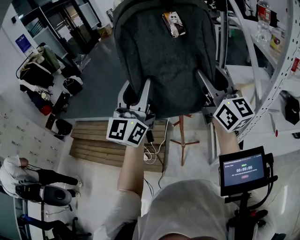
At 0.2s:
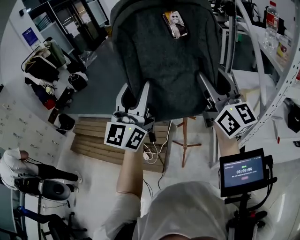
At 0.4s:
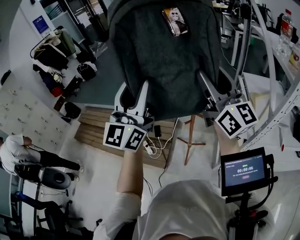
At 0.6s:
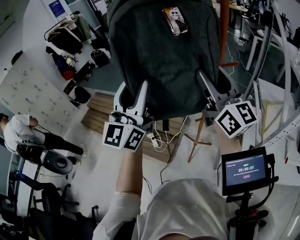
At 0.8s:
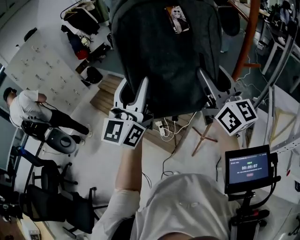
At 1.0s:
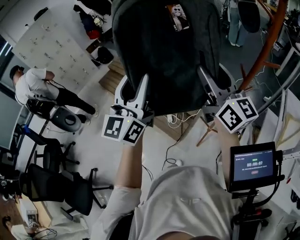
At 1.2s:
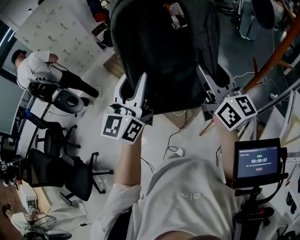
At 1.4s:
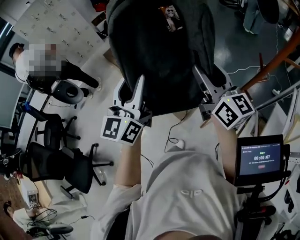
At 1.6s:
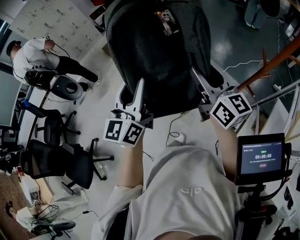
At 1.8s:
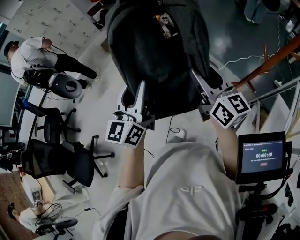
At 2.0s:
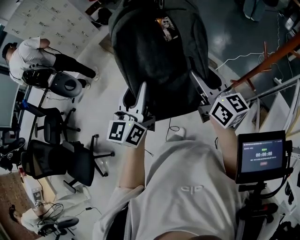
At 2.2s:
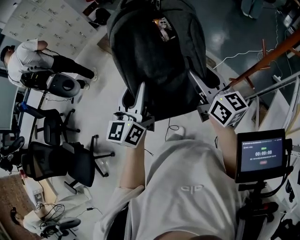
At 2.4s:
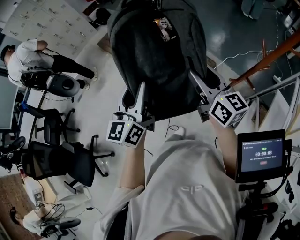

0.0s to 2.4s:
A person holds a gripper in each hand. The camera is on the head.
0.0s to 1.2s: The right gripper shifts by some 30 cm, and swivels about 40 degrees, while the left gripper ends up about 30 cm from where it was, and swivels approximately 40 degrees.
1.2s to 2.4s: The two grippers go some 15 cm downward.

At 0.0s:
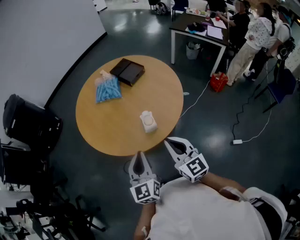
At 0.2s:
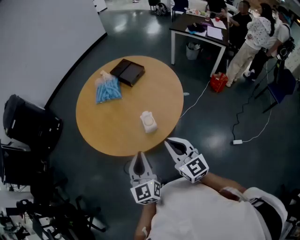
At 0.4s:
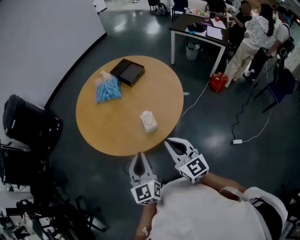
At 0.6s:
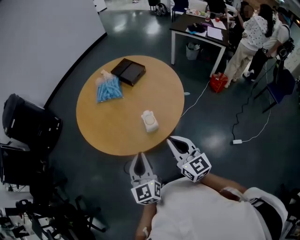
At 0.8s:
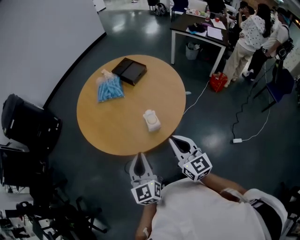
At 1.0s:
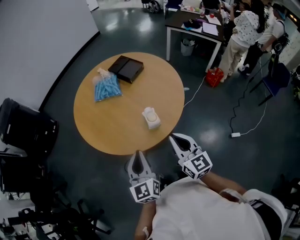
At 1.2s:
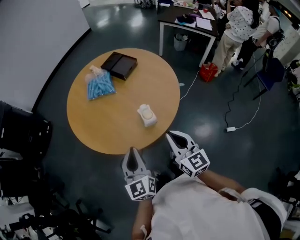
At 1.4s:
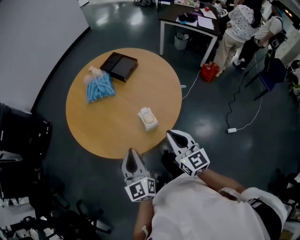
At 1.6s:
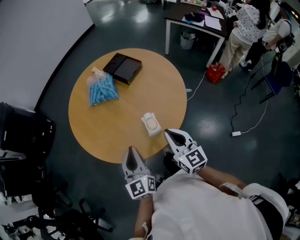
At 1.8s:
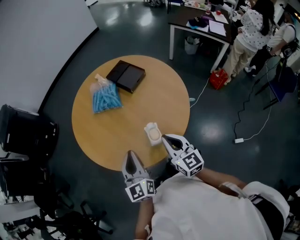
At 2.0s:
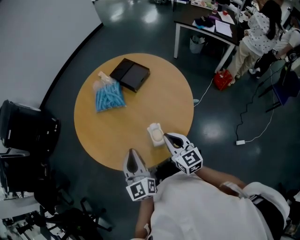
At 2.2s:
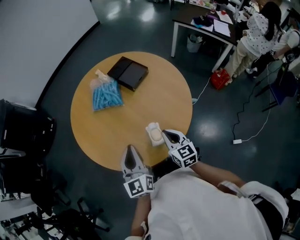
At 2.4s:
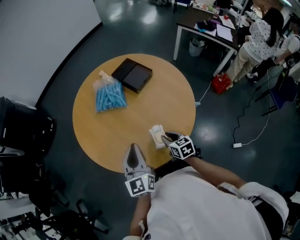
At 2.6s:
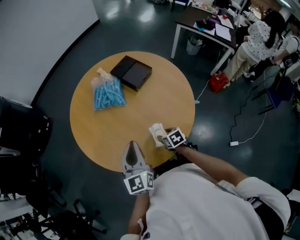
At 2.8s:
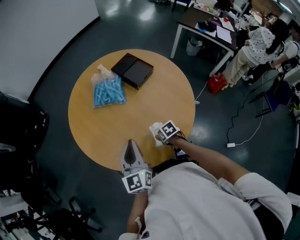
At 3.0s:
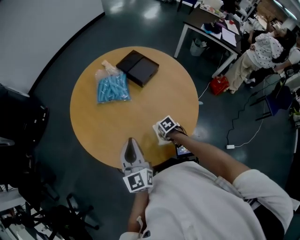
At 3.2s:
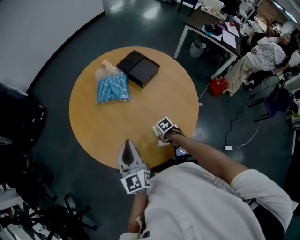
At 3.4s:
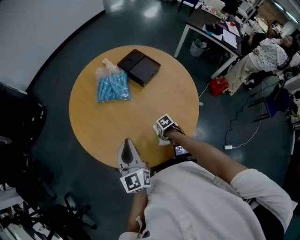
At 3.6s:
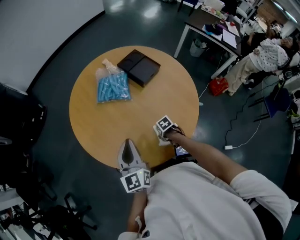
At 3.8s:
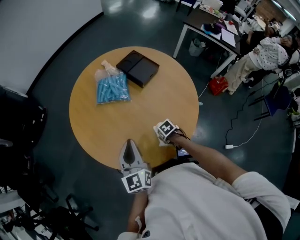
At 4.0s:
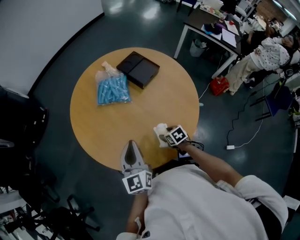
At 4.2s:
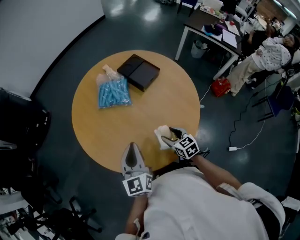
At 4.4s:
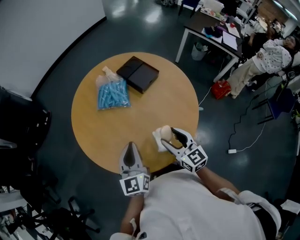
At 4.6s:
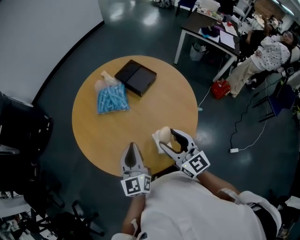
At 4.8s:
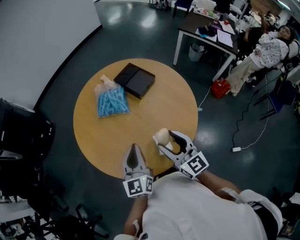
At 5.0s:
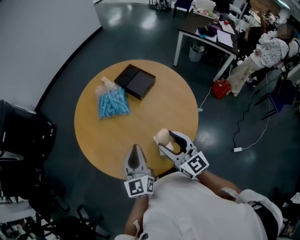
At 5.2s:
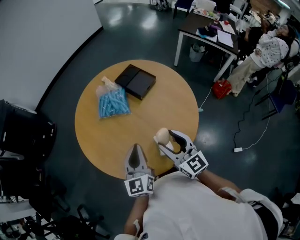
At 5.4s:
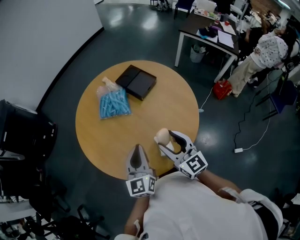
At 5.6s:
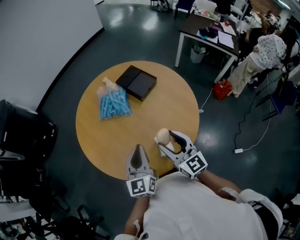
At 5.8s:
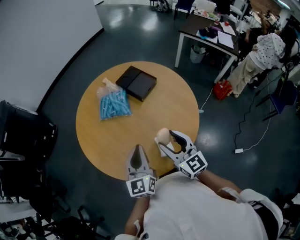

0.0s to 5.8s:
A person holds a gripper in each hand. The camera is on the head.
0.0s to 1.4s: The right gripper is displaced forward by some 5 cm. Meanwhile the left gripper goes approximately 10 cm forward and to the left.
1.4s to 2.8s: The left gripper is displaced forward by some 15 cm, while the right gripper shifts some 35 cm downward and forward, tilts its fingers some 60 degrees downward, and opens its fingers.
2.8s to 4.4s: The right gripper is displaced upward by some 25 cm, and angles its fingers upward, by roughly 50 degrees.
4.4s to 5.8s: The right gripper moves upward, about 5 cm.

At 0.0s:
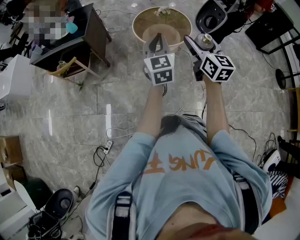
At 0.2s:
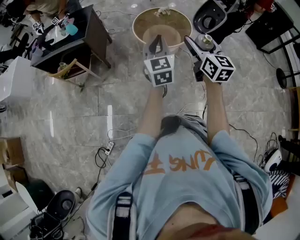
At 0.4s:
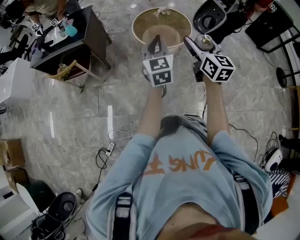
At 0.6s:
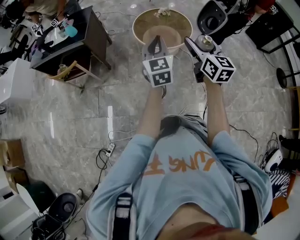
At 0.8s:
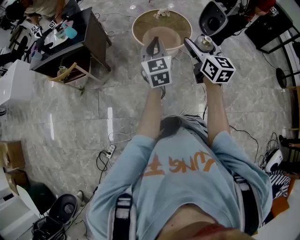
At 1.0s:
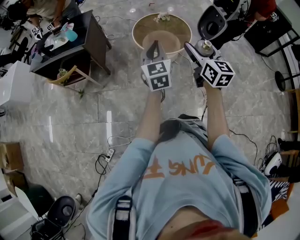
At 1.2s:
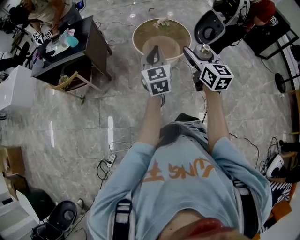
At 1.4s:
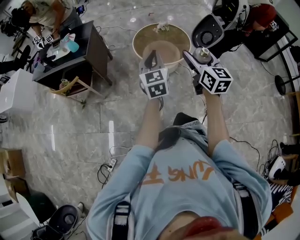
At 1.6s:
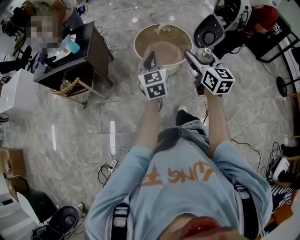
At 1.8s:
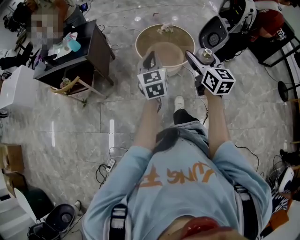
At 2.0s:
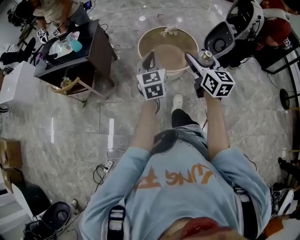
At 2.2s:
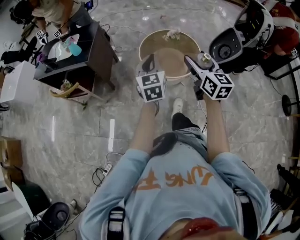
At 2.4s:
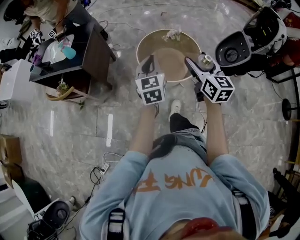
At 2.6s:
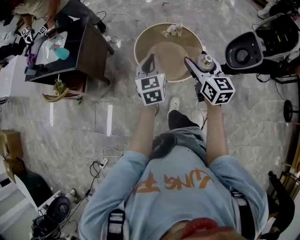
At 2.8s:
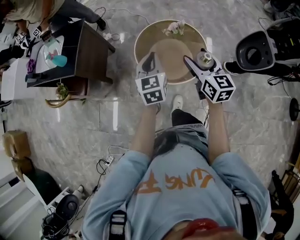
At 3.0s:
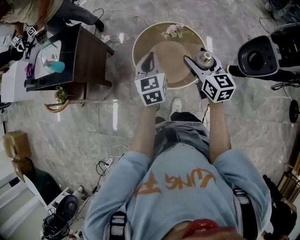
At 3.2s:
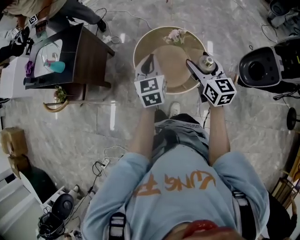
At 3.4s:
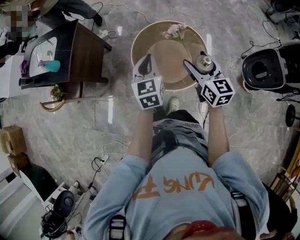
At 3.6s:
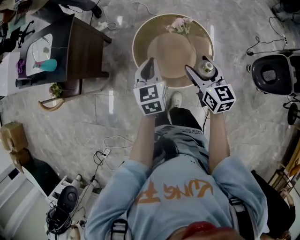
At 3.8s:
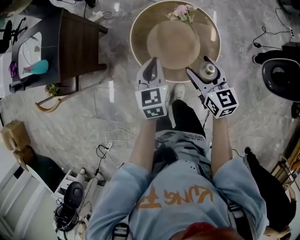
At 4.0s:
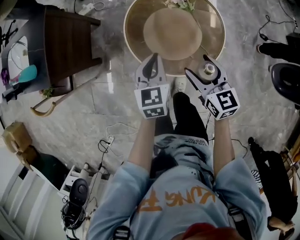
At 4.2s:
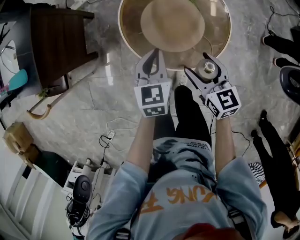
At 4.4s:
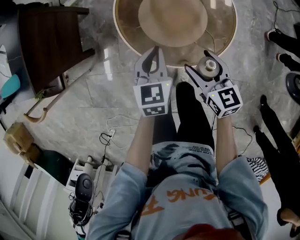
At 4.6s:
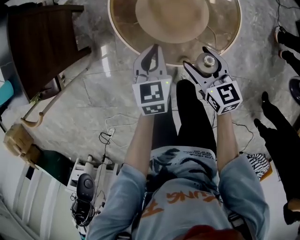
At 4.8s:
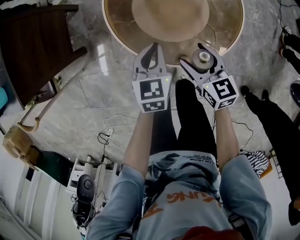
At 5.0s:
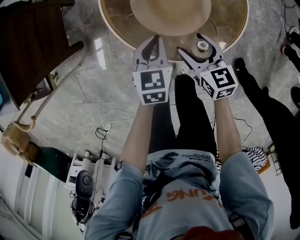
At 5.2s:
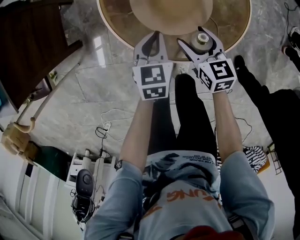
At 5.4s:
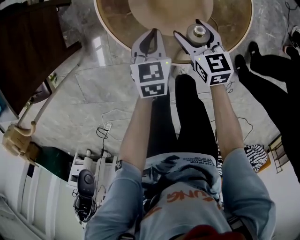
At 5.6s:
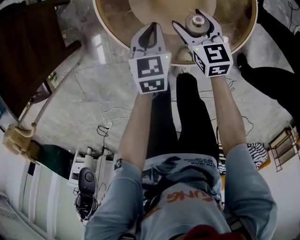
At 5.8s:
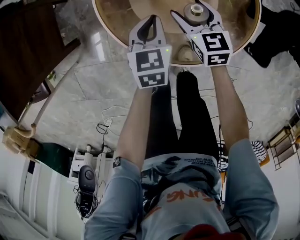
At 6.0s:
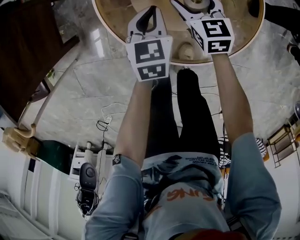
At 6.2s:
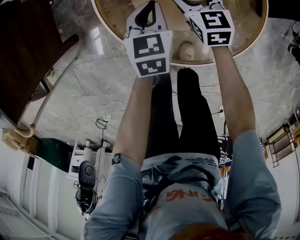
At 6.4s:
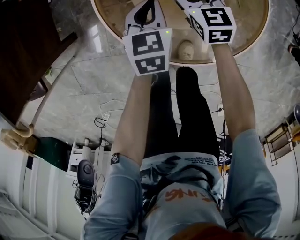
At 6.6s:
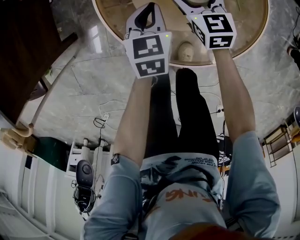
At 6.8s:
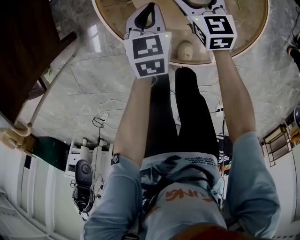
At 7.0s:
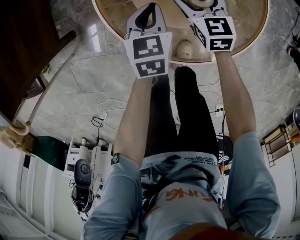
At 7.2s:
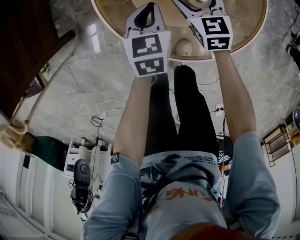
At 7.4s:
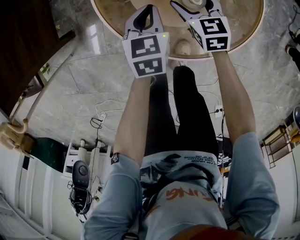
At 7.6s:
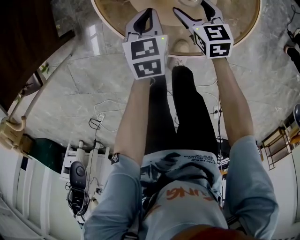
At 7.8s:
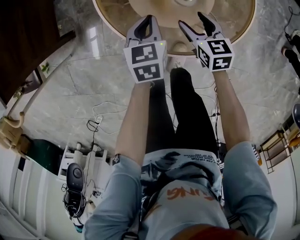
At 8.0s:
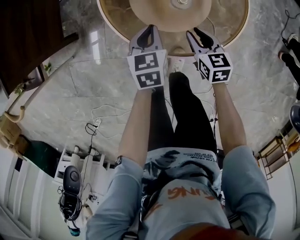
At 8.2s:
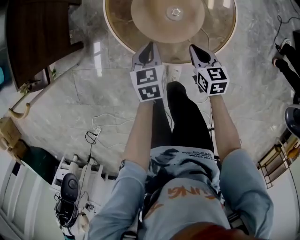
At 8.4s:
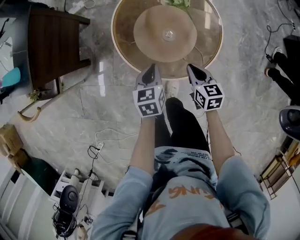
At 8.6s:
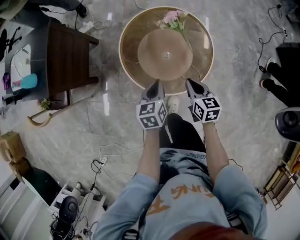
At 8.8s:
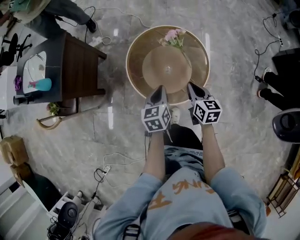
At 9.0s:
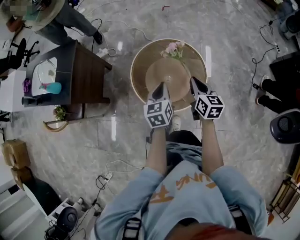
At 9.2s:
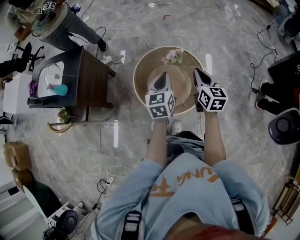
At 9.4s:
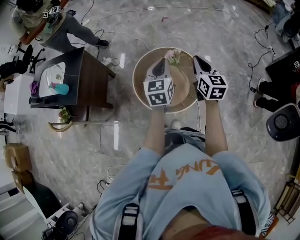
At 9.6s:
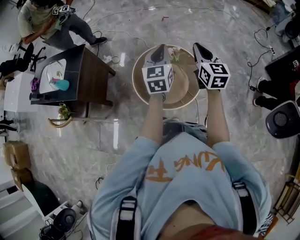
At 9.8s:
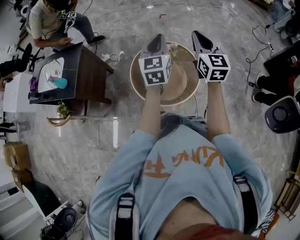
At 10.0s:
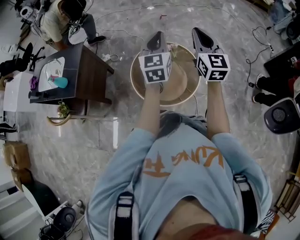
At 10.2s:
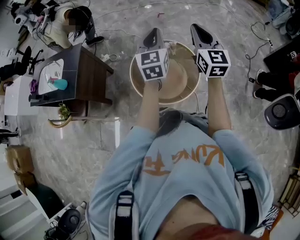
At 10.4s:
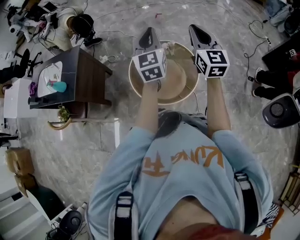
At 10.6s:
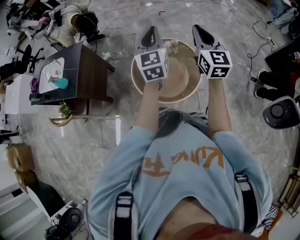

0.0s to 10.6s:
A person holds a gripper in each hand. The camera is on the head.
0.0s to 1.6s: The left gripper goes about 5 cm forward.
1.6s to 3.0s: The two grippers travel together, forward, some 40 cm.
3.0s to 4.6s: The two grippers go some 35 cm downward. The left gripper swivels approximately 20 degrees. Meanwhile the right gripper changes its angle by about 20 degrees.
4.6s to 6.0s: The right gripper heads forward and downward, covering about 25 cm; the left gripper moves downward and forward, roughly 15 cm.
6.0s to 7.6s: The right gripper travels backward by about 5 cm.
7.6s to 9.0s: Both grippers move upward, approximately 40 cm. The right gripper changes its angle by approximately 30 degrees, and closes. The left gripper rotates some 20 degrees.
9.0s to 10.6s: Both grippers travel together upward, roughly 25 cm. The left gripper swivels about 30 degrees. Meanwhile the right gripper turns by roughly 40 degrees.

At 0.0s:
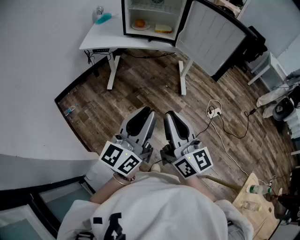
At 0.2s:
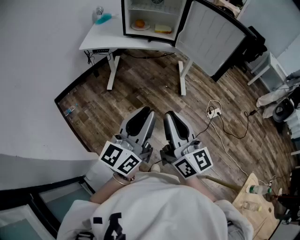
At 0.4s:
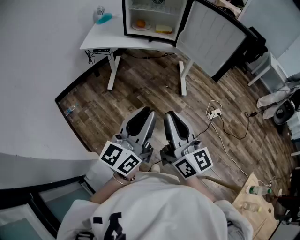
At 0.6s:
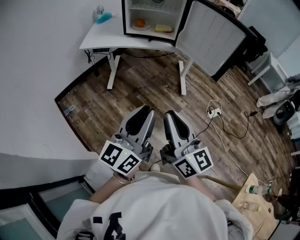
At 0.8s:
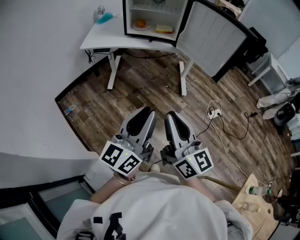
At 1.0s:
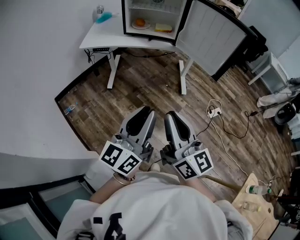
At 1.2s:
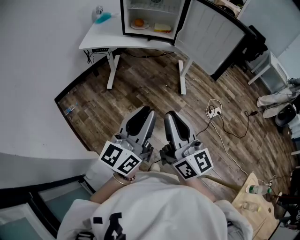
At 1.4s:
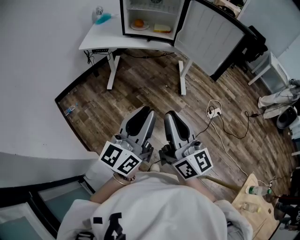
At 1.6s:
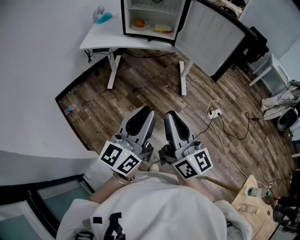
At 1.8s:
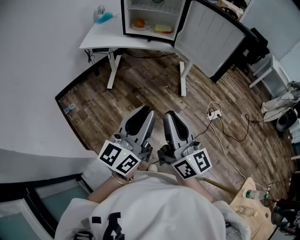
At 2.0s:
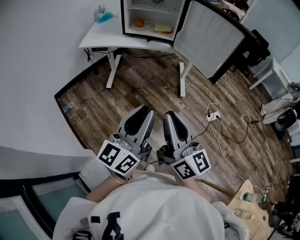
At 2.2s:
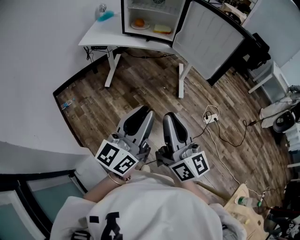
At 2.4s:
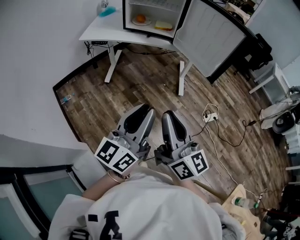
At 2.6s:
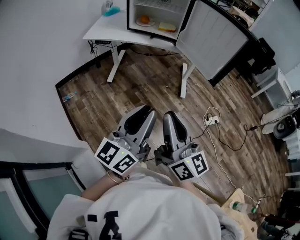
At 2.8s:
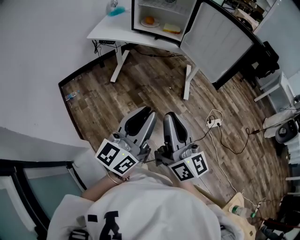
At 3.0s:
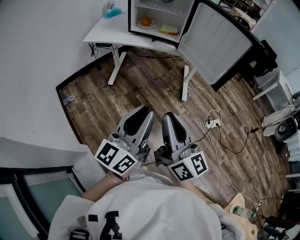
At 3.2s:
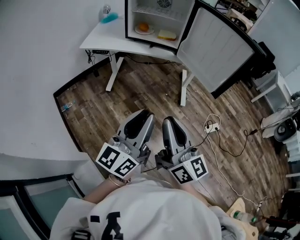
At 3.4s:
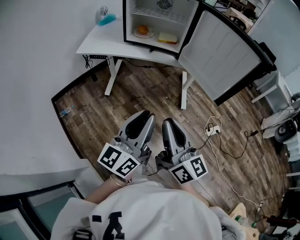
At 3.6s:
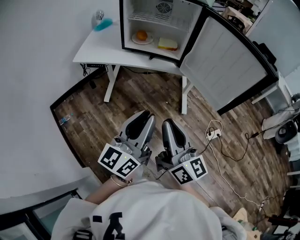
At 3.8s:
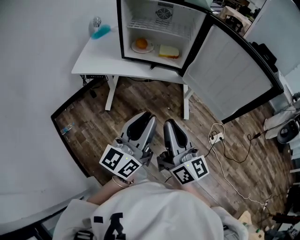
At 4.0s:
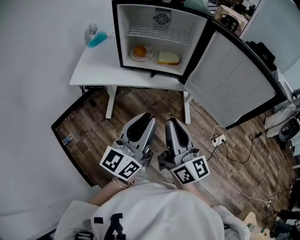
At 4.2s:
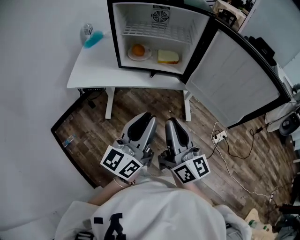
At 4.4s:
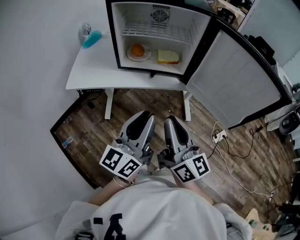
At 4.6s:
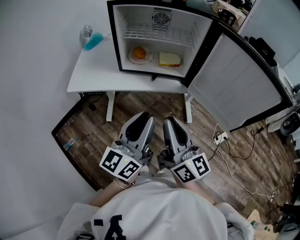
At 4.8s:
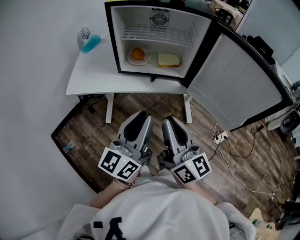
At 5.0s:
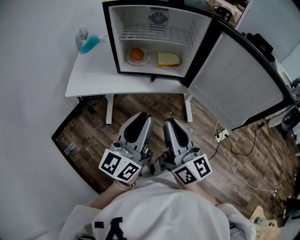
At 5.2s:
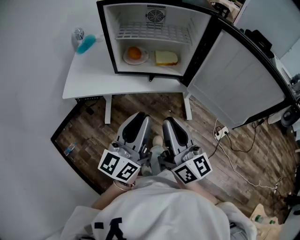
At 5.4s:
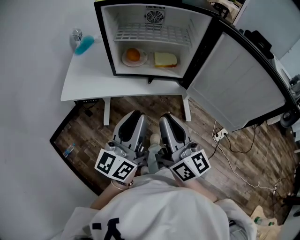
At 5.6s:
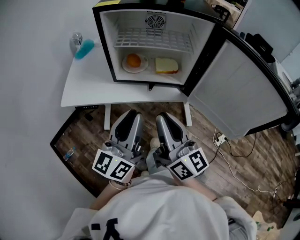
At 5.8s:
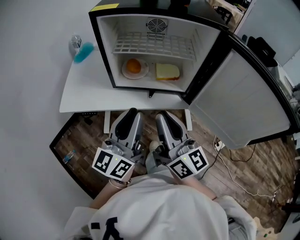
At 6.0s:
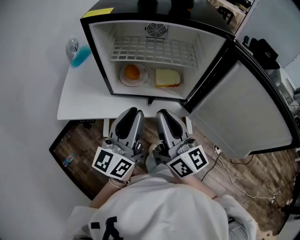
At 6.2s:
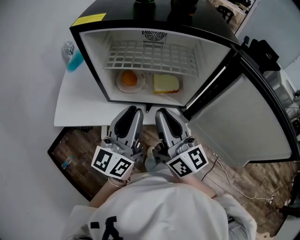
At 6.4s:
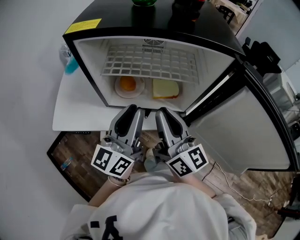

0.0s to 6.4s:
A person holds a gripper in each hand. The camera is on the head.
0.0s to 1.6s: The grippers stay close to where they were, moving slightly.
1.6s to 3.2s: Both grippers travel together forward, about 5 cm.
3.2s to 4.8s: The left gripper is displaced forward by some 30 cm. Meanwhile the right gripper moves forward and to the left, about 30 cm.
4.8s to 6.4s: Both grippers travel together forward, roughly 25 cm.
